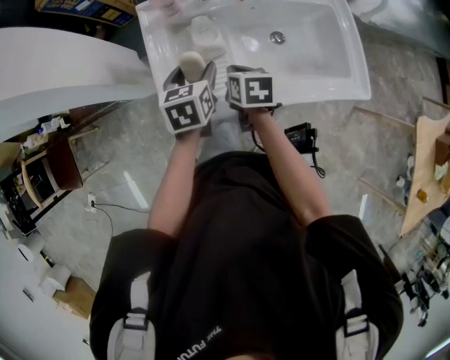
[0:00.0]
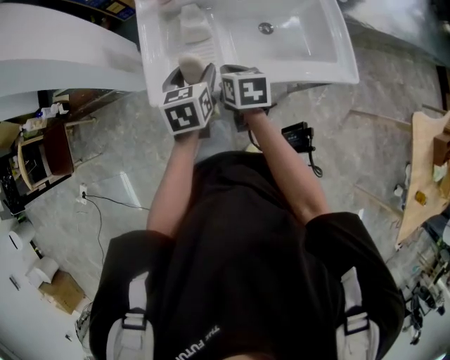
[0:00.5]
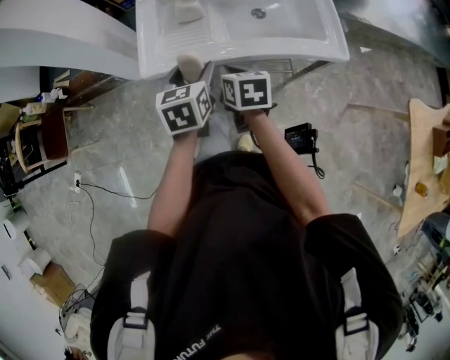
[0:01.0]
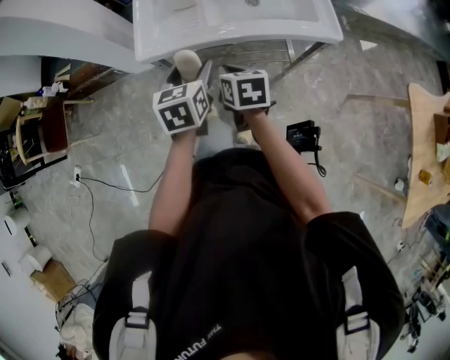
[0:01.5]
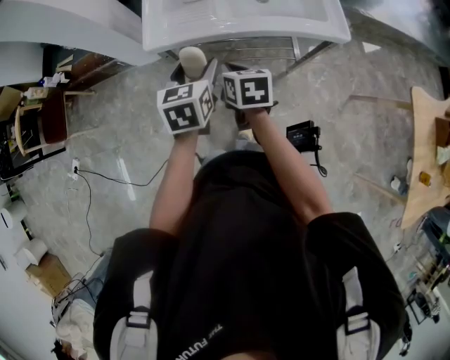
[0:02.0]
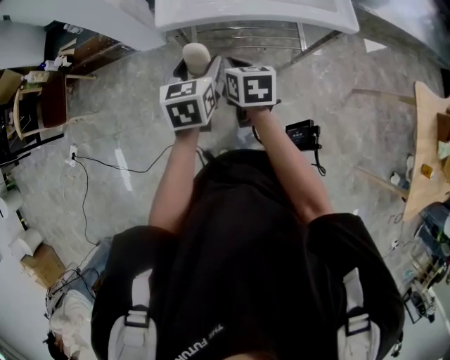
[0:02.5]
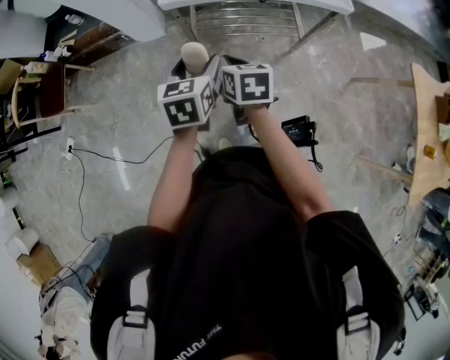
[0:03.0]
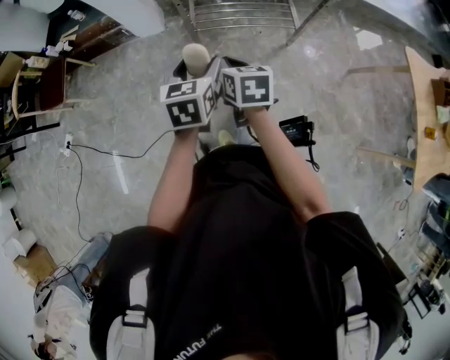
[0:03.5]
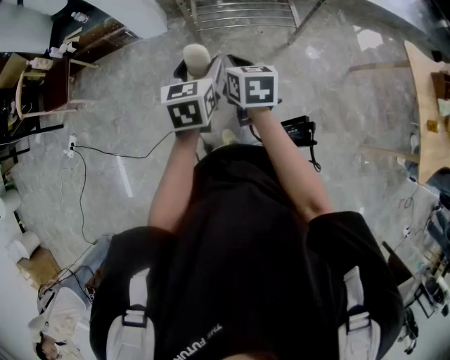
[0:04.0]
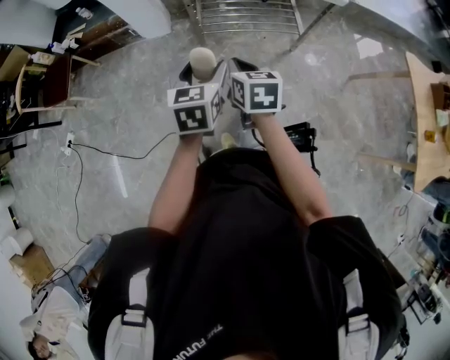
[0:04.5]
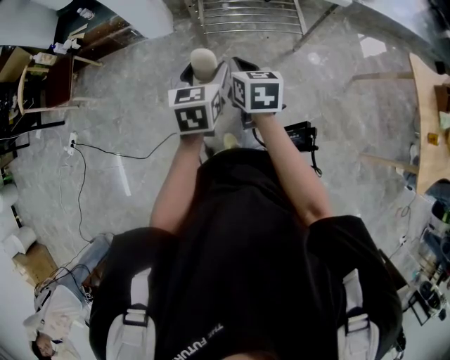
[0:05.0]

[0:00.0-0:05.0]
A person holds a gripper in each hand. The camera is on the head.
0:00.0 to 0:02.5: Both grippers move backward, some 40 cm.
0:02.5 to 0:05.0: The grippers both shift backward by roughly 25 cm.

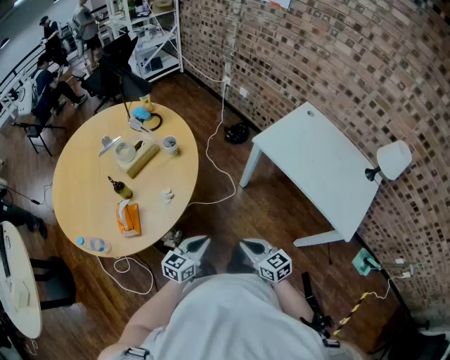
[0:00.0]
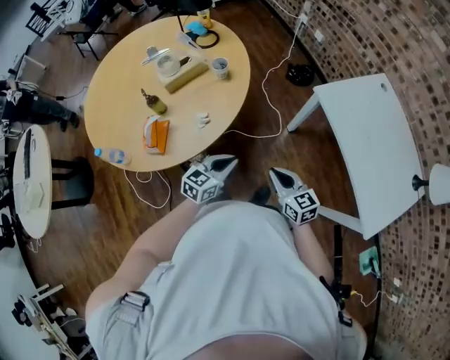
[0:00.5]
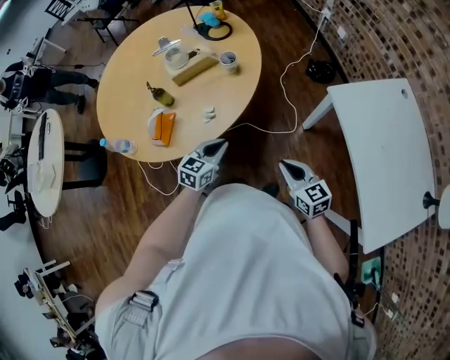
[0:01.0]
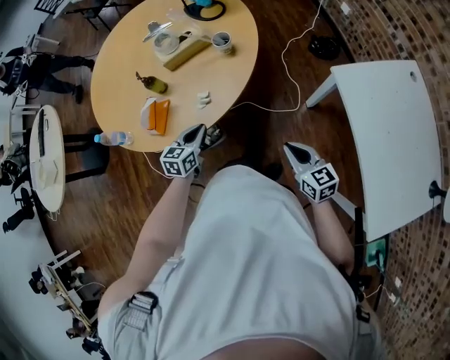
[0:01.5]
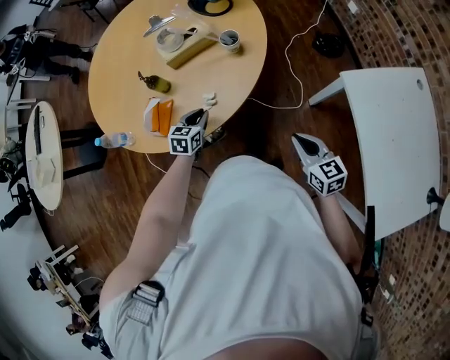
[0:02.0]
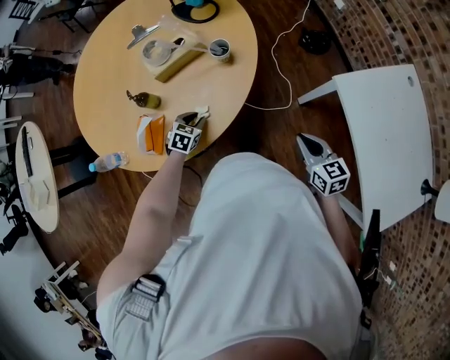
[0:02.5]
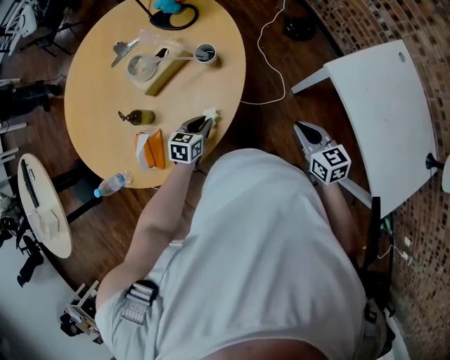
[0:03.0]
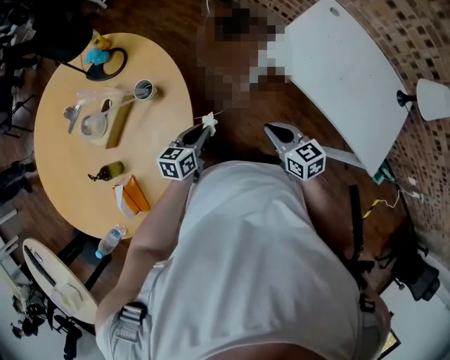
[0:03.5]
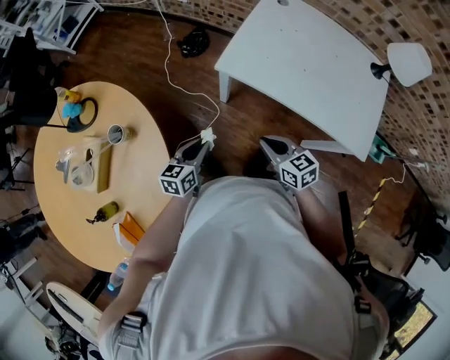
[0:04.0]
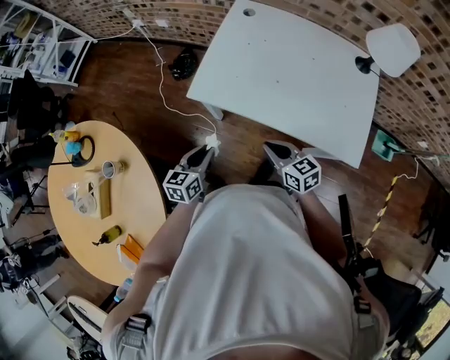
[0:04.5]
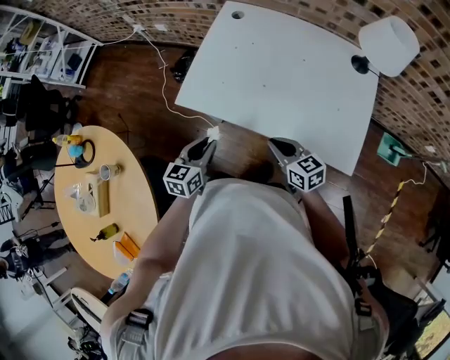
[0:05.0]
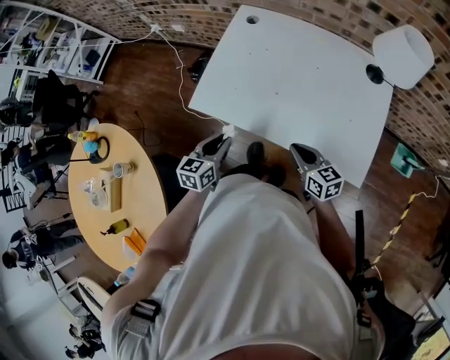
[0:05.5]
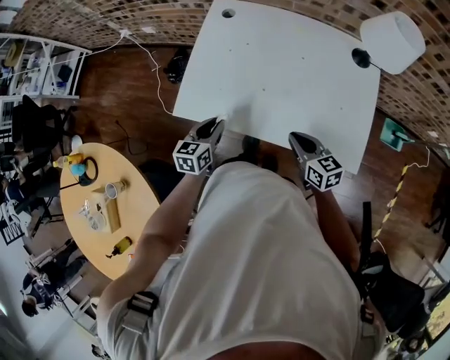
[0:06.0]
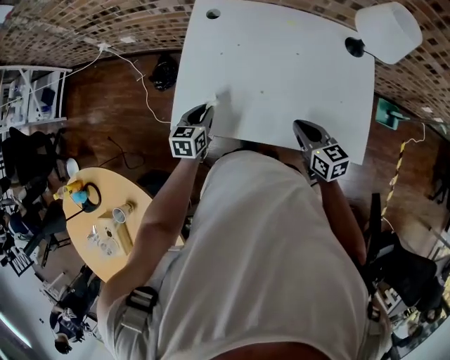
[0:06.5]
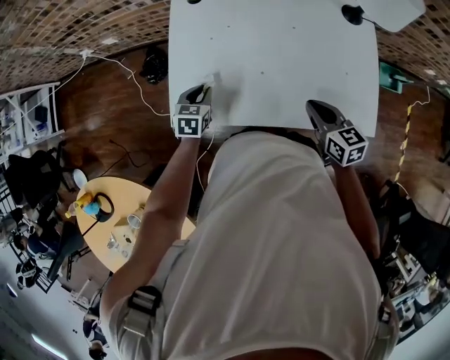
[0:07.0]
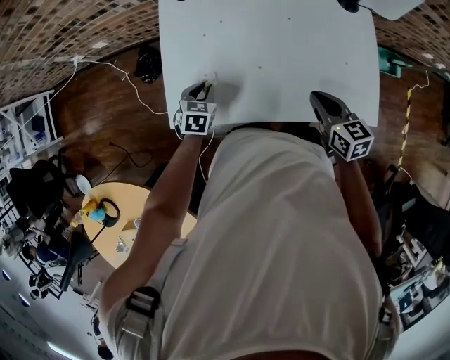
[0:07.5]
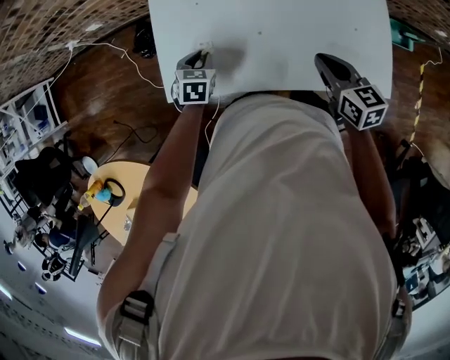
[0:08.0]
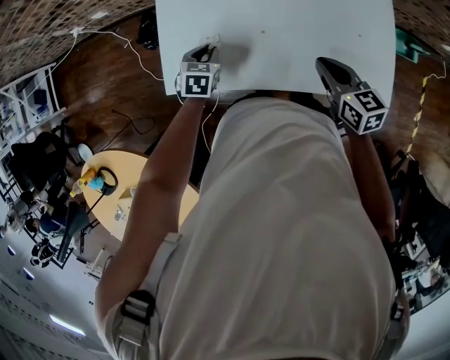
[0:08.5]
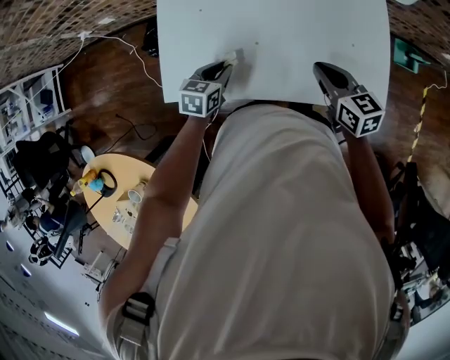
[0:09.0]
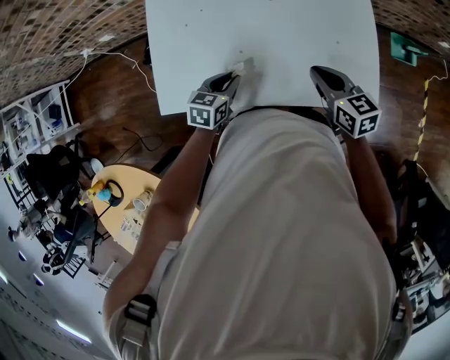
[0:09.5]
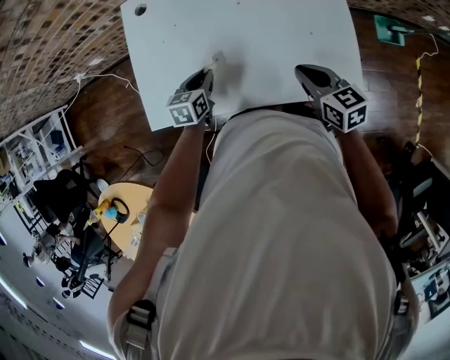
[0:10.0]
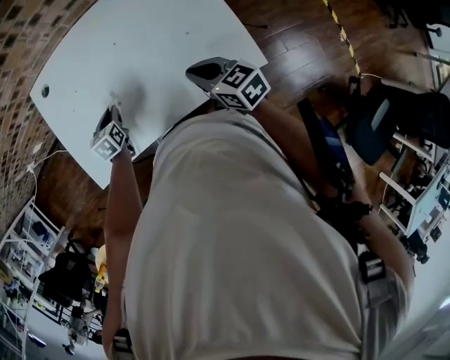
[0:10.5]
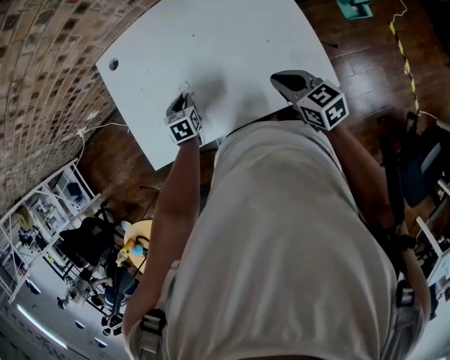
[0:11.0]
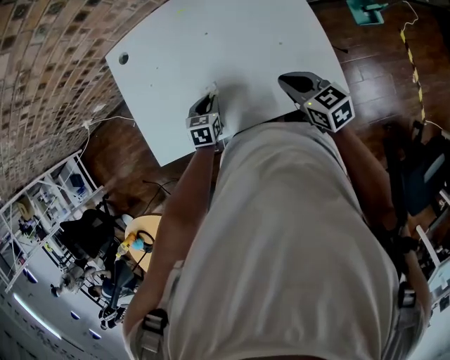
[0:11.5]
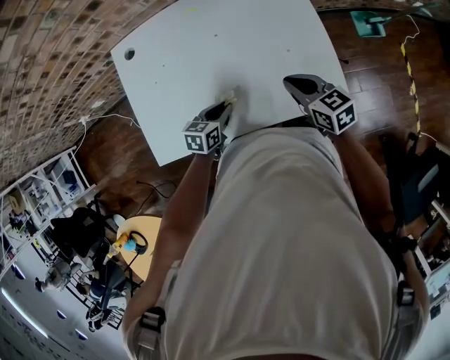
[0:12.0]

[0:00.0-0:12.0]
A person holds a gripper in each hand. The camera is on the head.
0:00.0 to 0:02.0: The left gripper changes place by some 30 cm, and changes its angle by approximately 40 degrees; the right gripper changes place by some 25 cm.
0:02.0 to 0:04.0: The right gripper shifts by approximately 10 cm, and swivels approximately 40 degrees. The left gripper moves some 30 cm, and rotates some 50 degrees.
0:04.0 to 0:06.0: Both grippers travel together to the right and forward, about 30 cm. The right gripper changes its angle by approximately 20 degrees.
0:06.0 to 0:08.0: The right gripper shifts roughly 5 cm forward. The left gripper goes about 15 cm forward and downward, and turns by approximately 30 degrees.
0:08.0 to 0:10.0: The right gripper shifts some 10 cm to the right, while the left gripper travels to the right by some 15 cm, and rotates roughly 20 degrees.
0:10.0 to 0:12.0: The left gripper travels to the right by roughly 10 cm, and swivels some 20 degrees.

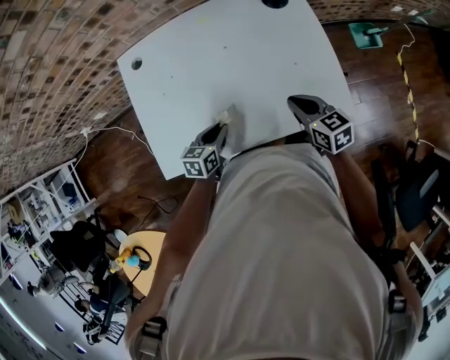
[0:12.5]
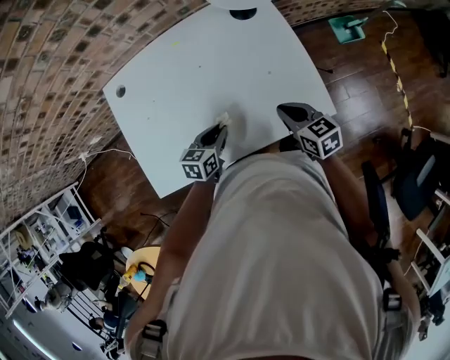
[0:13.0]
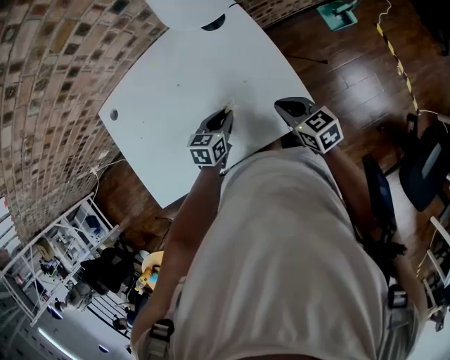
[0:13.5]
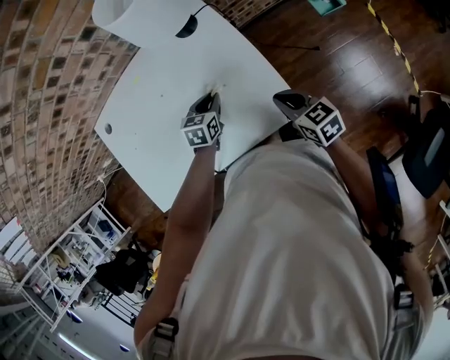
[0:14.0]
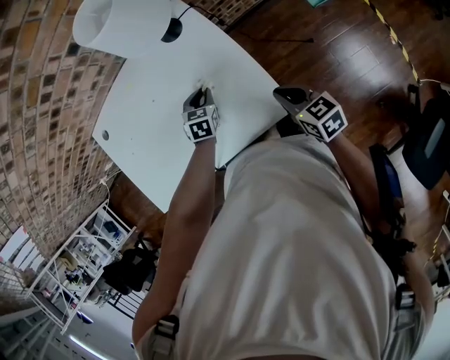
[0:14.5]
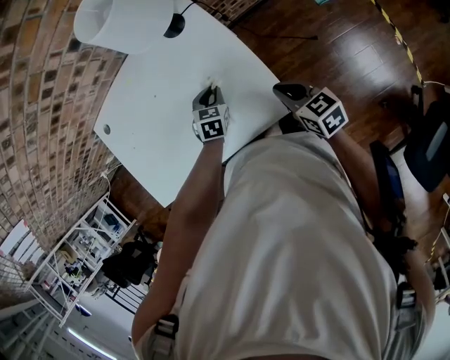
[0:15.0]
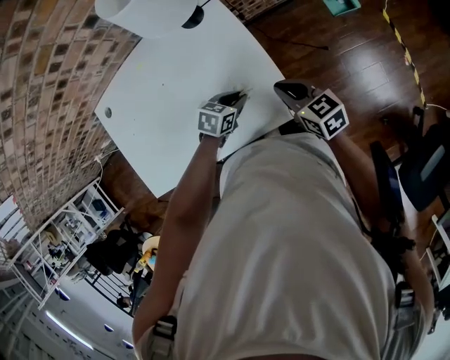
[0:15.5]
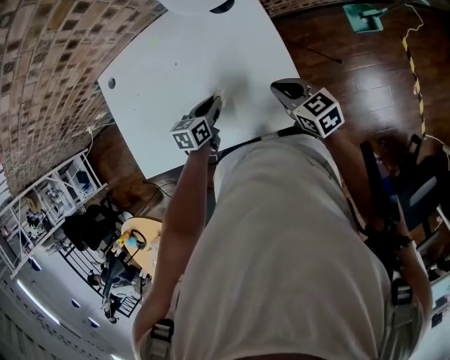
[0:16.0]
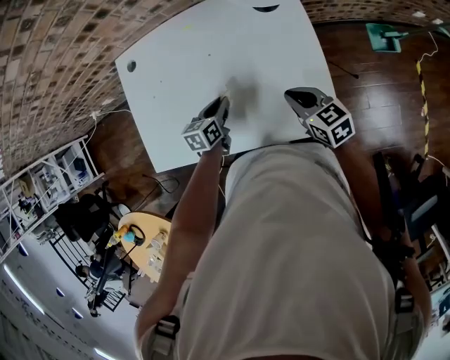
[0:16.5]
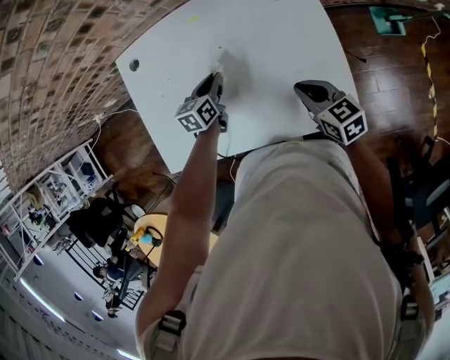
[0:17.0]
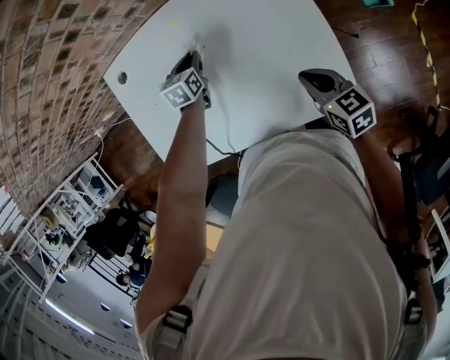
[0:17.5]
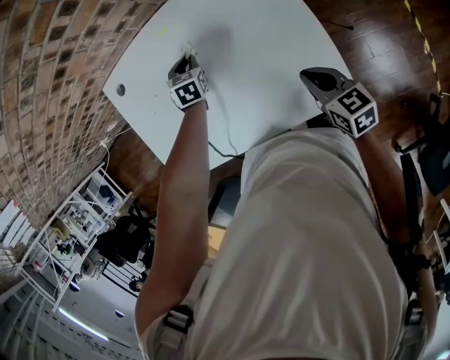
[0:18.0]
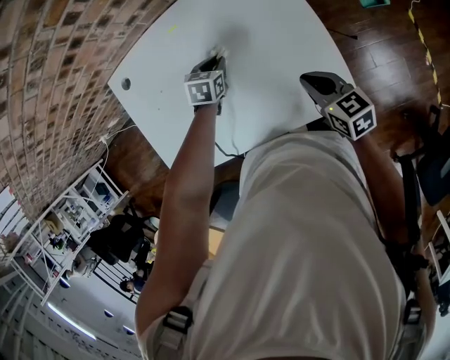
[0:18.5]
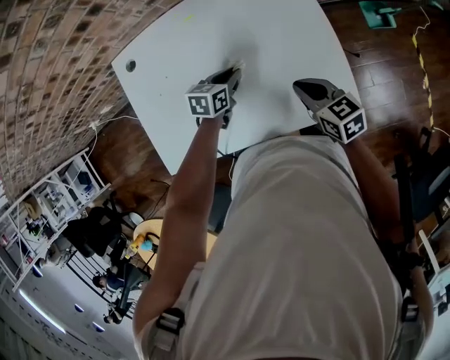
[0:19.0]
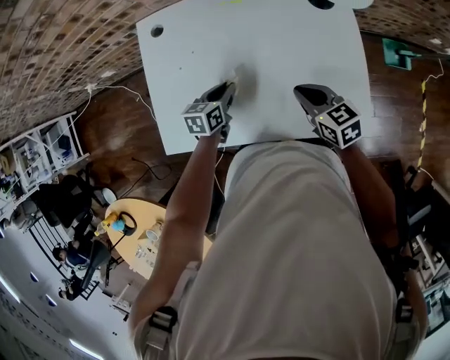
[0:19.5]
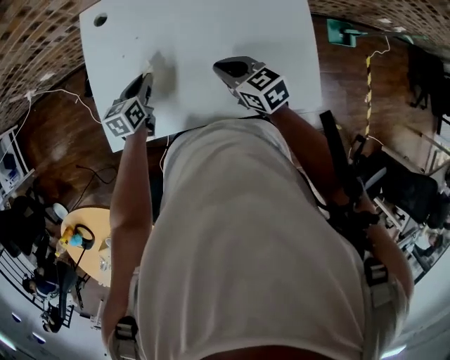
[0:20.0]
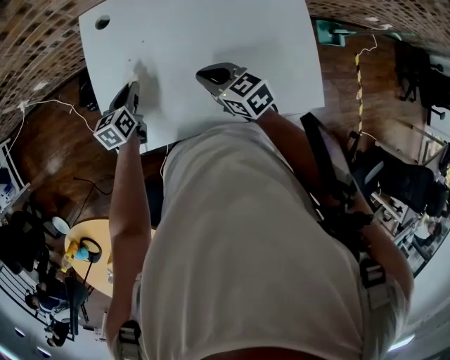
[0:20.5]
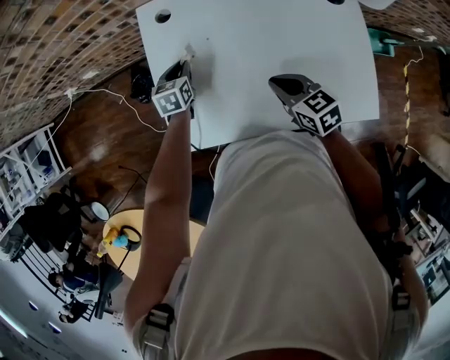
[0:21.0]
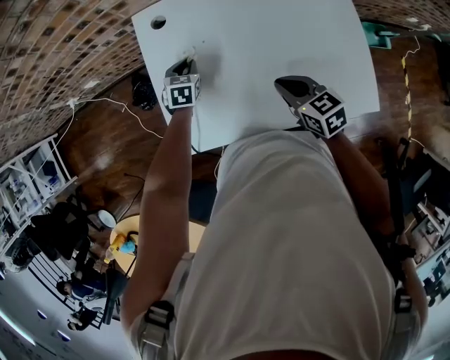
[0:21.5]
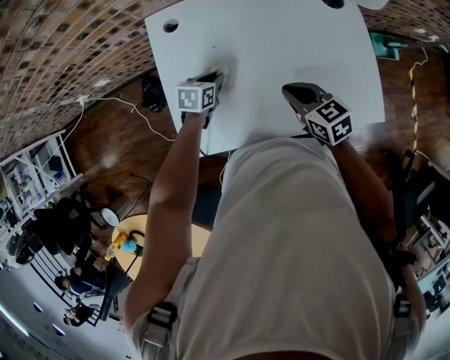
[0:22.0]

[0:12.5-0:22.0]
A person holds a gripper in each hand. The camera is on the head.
0:12.5 to 0:14.5: The left gripper moves to the right and forward, about 30 cm, and swivels approximately 30 degrees; the right gripper moves to the right, about 25 cm.
0:14.5 to 0:16.5: The left gripper ends up roughly 20 cm from where it was, and changes its angle by some 40 degrees. The right gripper shifts by approximately 15 cm.
0:16.5 to 0:18.0: The left gripper goes about 20 cm forward, and rotates approximately 30 degrees.
0:18.0 to 0:20.0: The left gripper moves to the left and backward, approximately 25 cm, and rotates roughly 40 degrees. Meanwhile the right gripper heads to the left, covering some 25 cm, and swivels about 20 degrees.
0:20.0 to 0:22.0: The left gripper rotates approximately 20 degrees.
